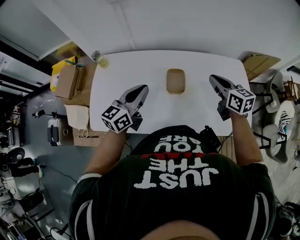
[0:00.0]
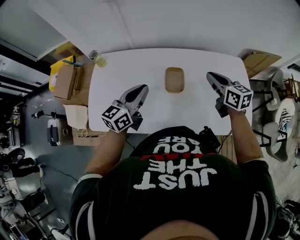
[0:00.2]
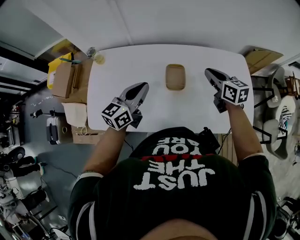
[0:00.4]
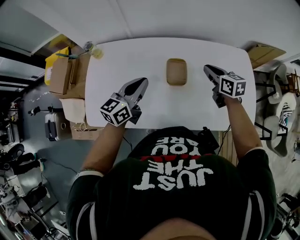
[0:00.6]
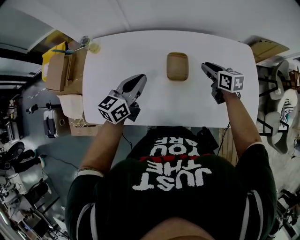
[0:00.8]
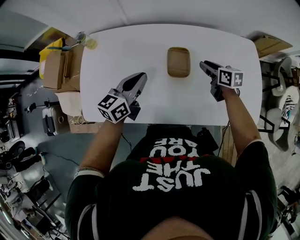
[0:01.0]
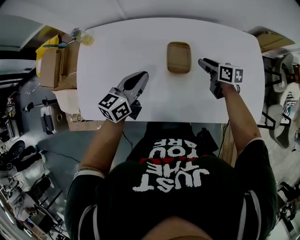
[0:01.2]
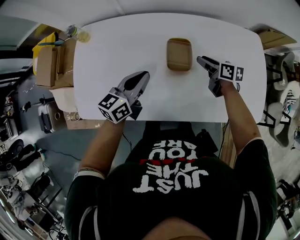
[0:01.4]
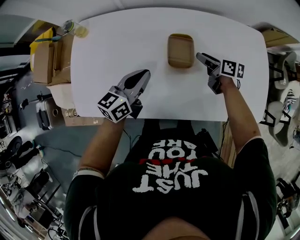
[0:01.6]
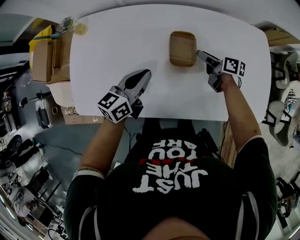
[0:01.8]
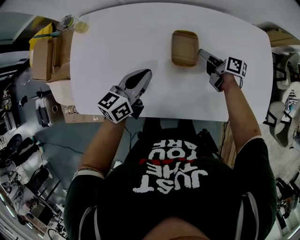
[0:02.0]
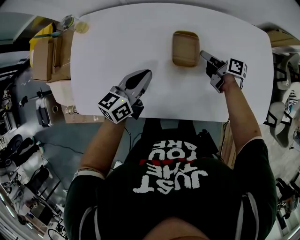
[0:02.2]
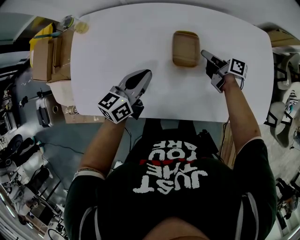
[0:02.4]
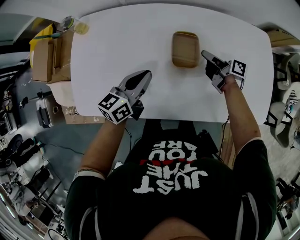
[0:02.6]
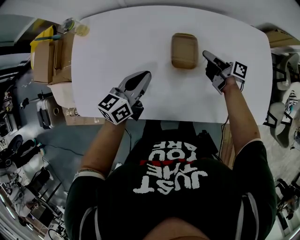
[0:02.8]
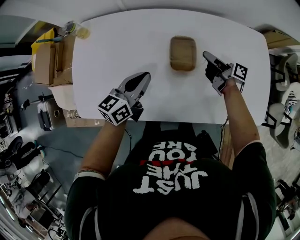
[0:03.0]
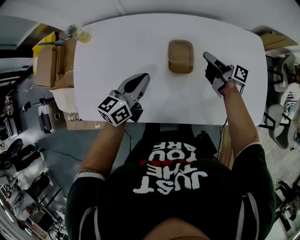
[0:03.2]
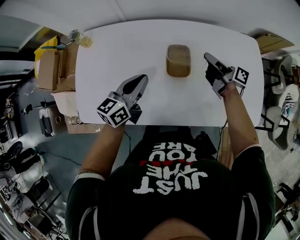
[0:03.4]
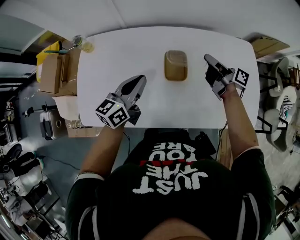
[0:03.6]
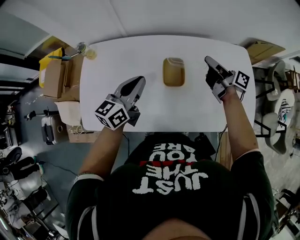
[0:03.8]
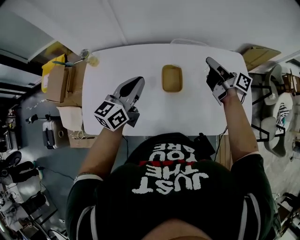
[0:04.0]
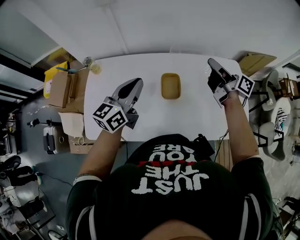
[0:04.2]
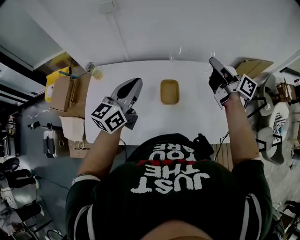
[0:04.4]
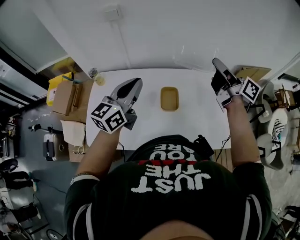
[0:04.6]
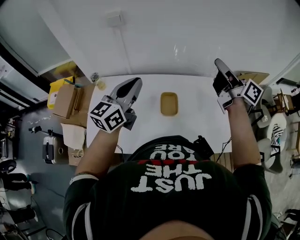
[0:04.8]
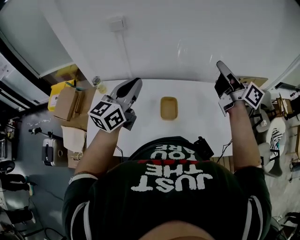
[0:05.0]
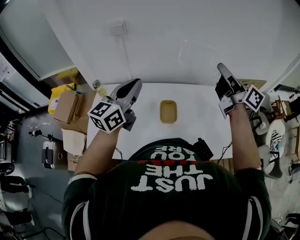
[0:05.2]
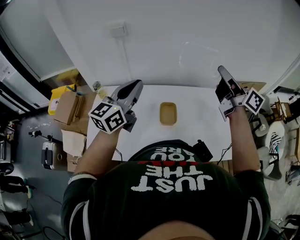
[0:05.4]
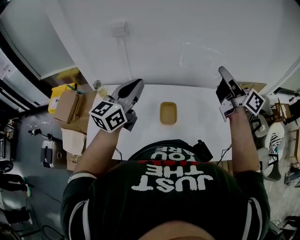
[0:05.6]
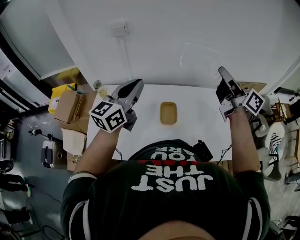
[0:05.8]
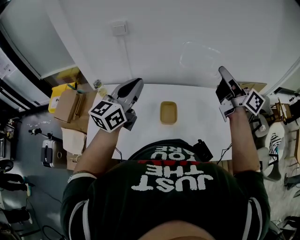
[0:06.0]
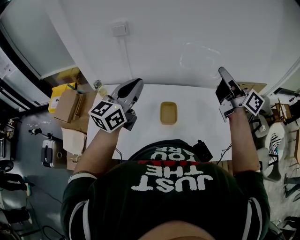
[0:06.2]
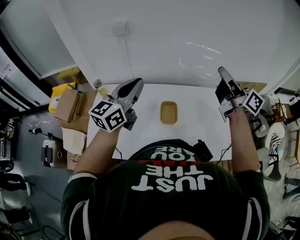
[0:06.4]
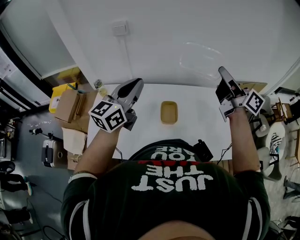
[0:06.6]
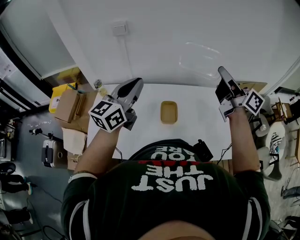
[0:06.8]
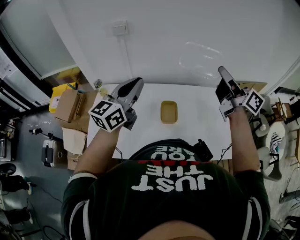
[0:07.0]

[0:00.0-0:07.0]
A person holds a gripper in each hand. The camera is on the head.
0.0 to 1.4 s: The right gripper heads downward, covering about 25 cm, swivels roughly 30 degrees, and opens, while the left gripper moves downward, roughly 15 cm.
1.4 to 2.8 s: The right gripper changes its angle by some 30 degrees, and closes its fingers.
2.8 to 4.2 s: Both grippers move upward, some 25 cm. The right gripper swivels approximately 30 degrees.
4.2 to 5.6 s: The left gripper travels upward by approximately 10 cm. Meanwhile the right gripper shifts roughly 20 cm upward, and changes its angle by some 20 degrees.
5.6 to 7.0 s: Both grippers stay put.

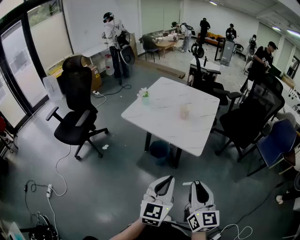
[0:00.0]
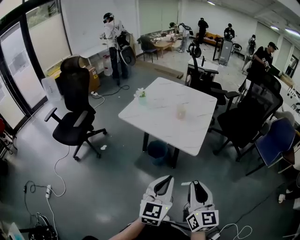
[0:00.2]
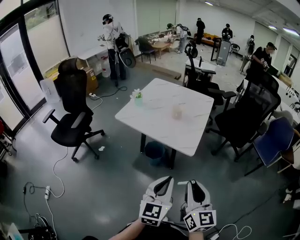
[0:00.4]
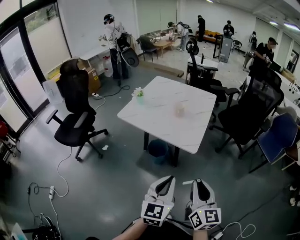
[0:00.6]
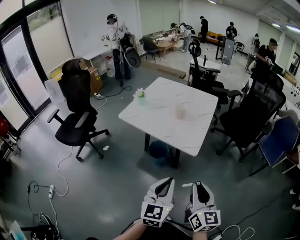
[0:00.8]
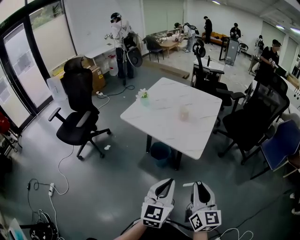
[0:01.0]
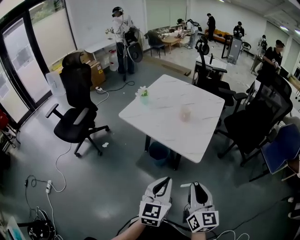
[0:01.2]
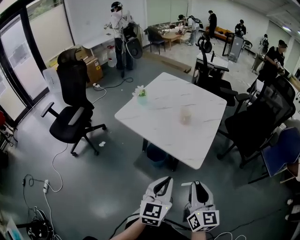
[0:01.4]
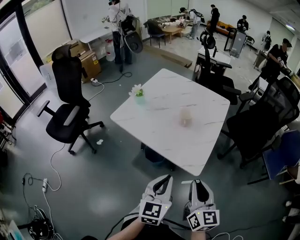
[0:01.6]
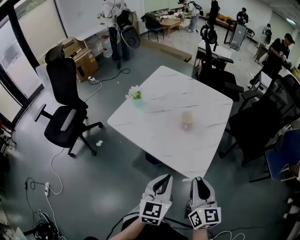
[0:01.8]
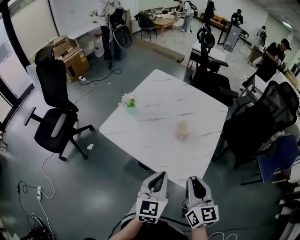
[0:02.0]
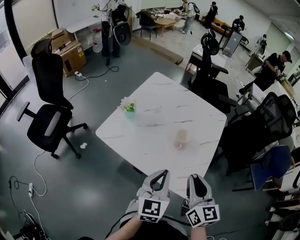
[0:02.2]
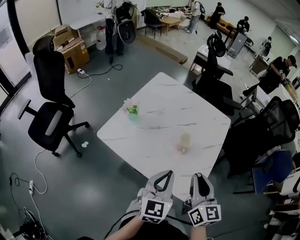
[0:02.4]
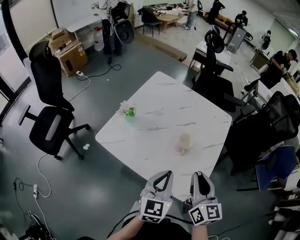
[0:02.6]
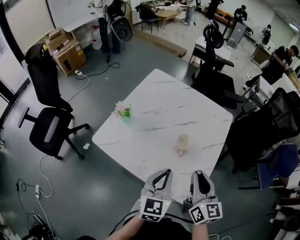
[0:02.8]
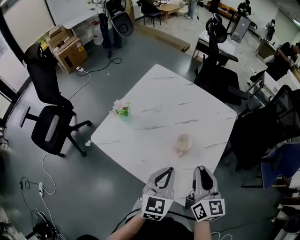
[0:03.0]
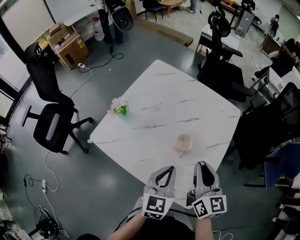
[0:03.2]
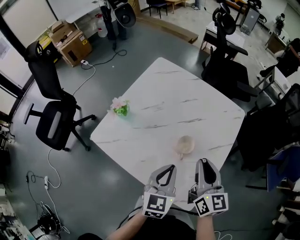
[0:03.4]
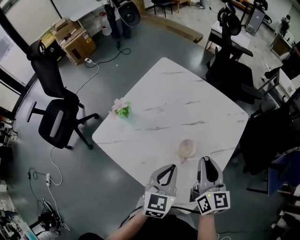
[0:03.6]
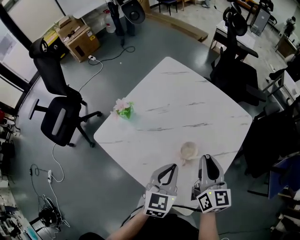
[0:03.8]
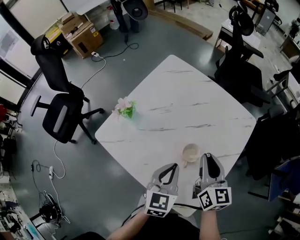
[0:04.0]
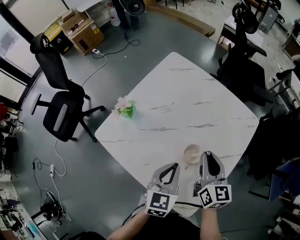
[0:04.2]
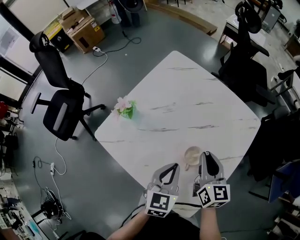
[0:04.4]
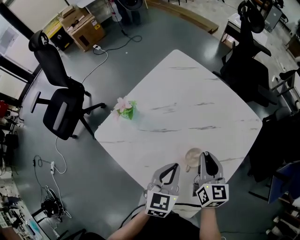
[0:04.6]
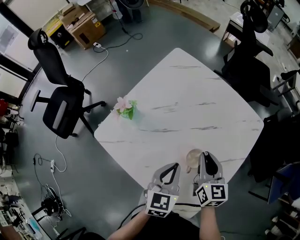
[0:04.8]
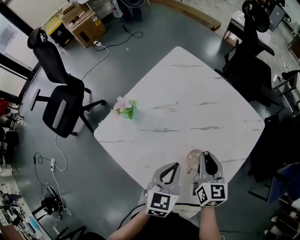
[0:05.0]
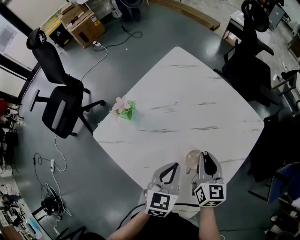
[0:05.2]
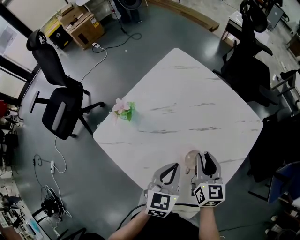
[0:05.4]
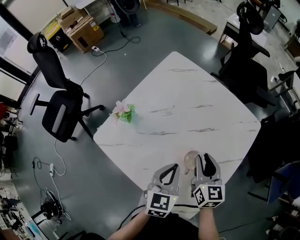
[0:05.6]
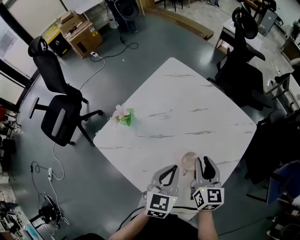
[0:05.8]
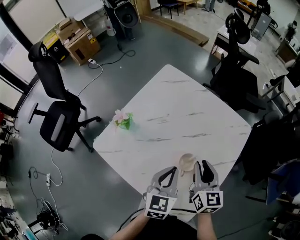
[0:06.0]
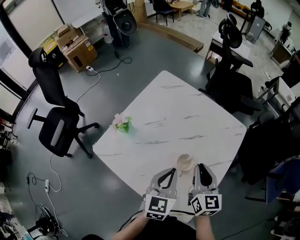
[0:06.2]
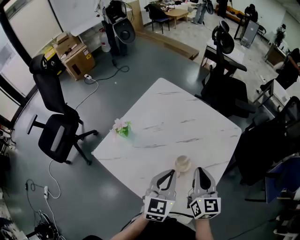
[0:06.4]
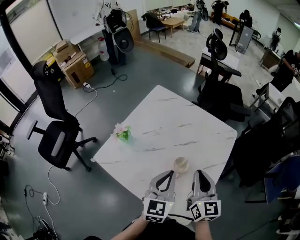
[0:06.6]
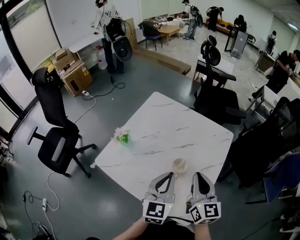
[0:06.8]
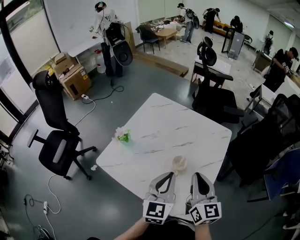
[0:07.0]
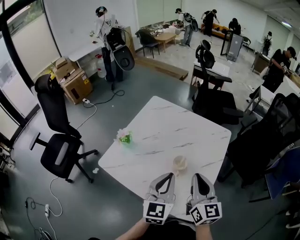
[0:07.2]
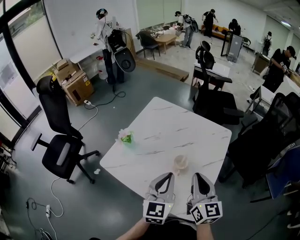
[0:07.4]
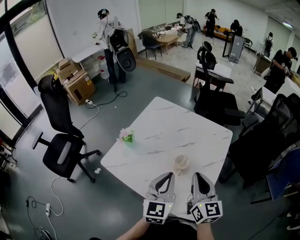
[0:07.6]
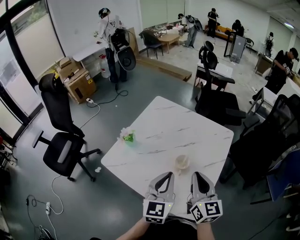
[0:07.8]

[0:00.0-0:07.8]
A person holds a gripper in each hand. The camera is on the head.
0.0 to 1.6 s: The right gripper is displaced forward by roughly 20 cm, while the left gripper moves forward and downward, approximately 20 cm.
1.6 to 3.2 s: Both grippers move forward, roughly 30 cm.
3.2 to 4.6 s: The right gripper shifts approximately 15 cm forward and downward. Meanwhile the left gripper moves forward and downward, some 10 cm.
4.6 to 6.2 s: The right gripper changes place by approximately 5 cm.
6.2 to 7.8 s: The two grippers go some 15 cm upward and backward.

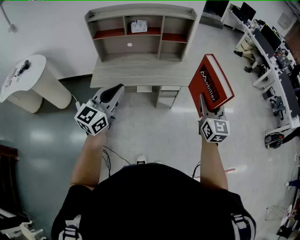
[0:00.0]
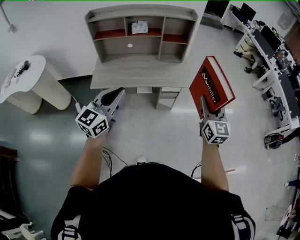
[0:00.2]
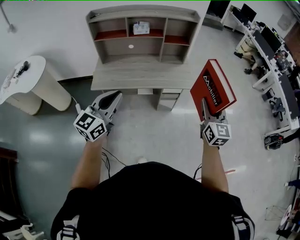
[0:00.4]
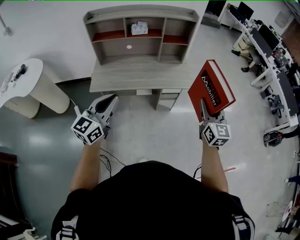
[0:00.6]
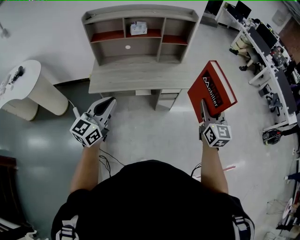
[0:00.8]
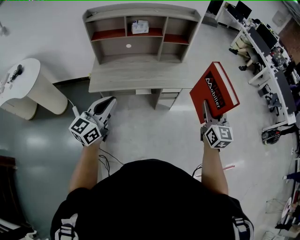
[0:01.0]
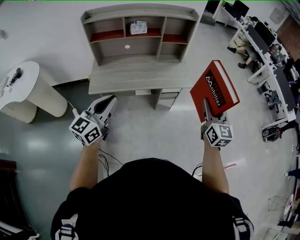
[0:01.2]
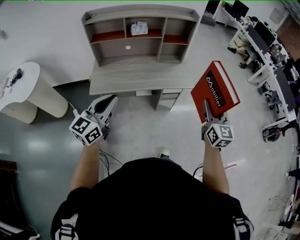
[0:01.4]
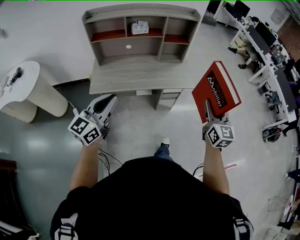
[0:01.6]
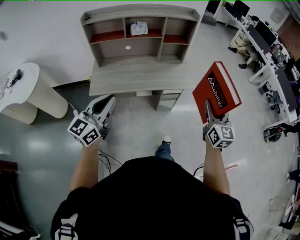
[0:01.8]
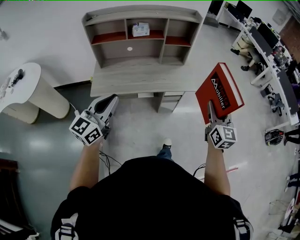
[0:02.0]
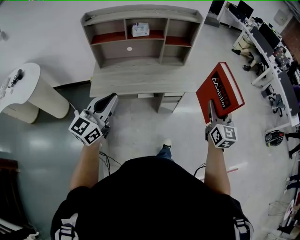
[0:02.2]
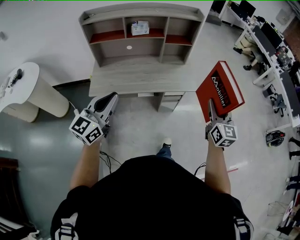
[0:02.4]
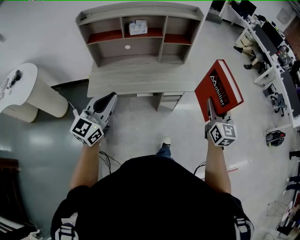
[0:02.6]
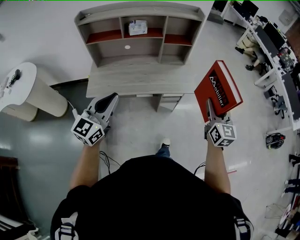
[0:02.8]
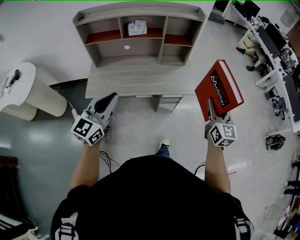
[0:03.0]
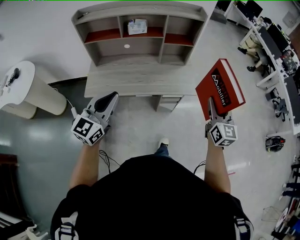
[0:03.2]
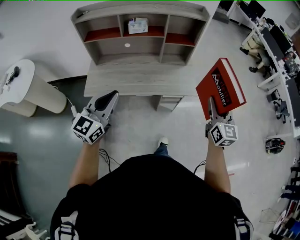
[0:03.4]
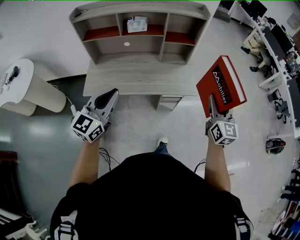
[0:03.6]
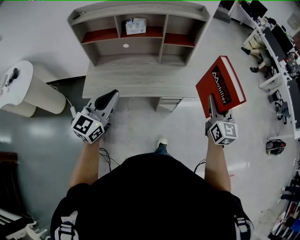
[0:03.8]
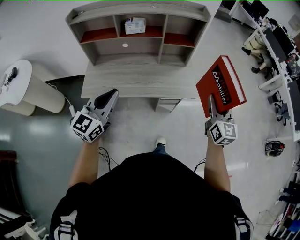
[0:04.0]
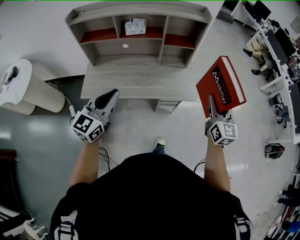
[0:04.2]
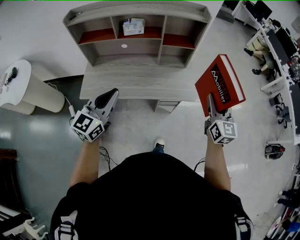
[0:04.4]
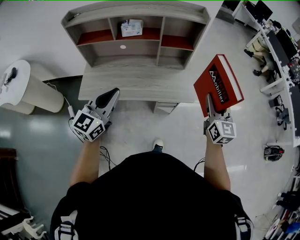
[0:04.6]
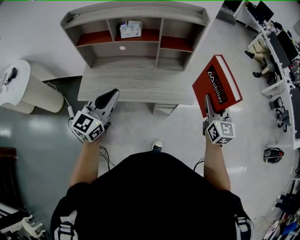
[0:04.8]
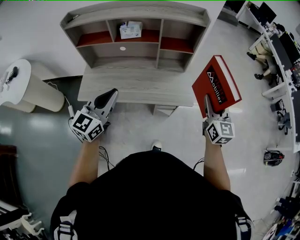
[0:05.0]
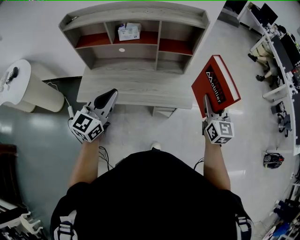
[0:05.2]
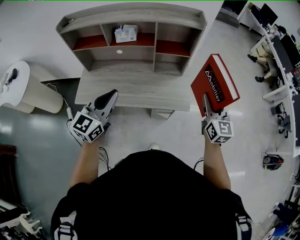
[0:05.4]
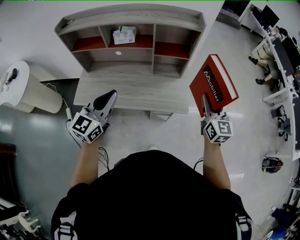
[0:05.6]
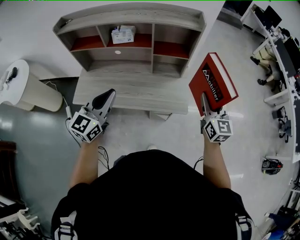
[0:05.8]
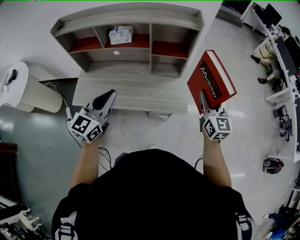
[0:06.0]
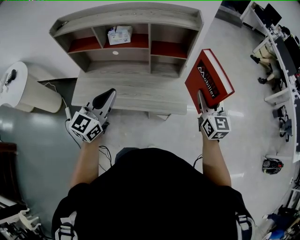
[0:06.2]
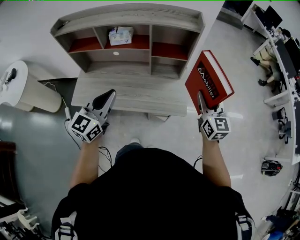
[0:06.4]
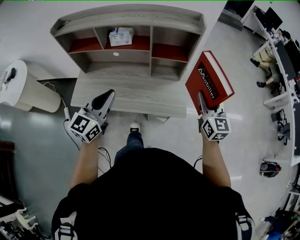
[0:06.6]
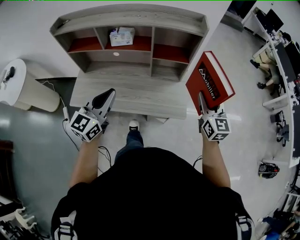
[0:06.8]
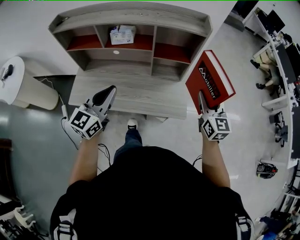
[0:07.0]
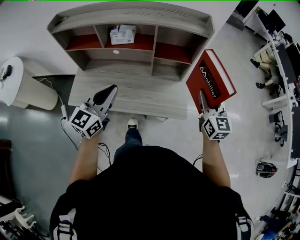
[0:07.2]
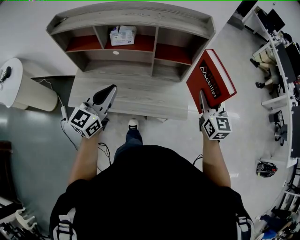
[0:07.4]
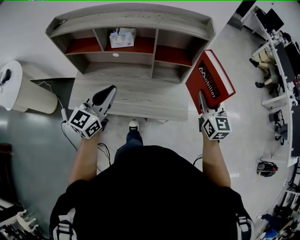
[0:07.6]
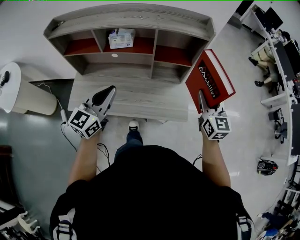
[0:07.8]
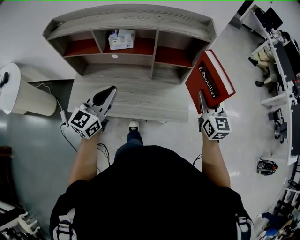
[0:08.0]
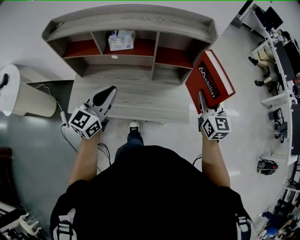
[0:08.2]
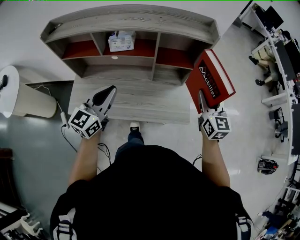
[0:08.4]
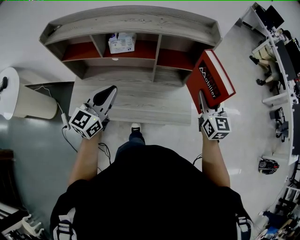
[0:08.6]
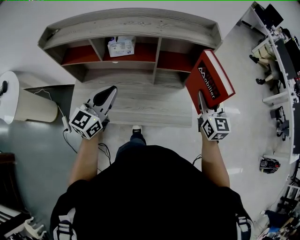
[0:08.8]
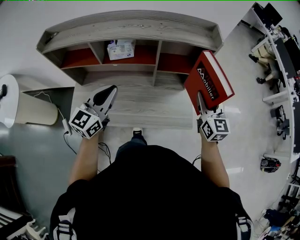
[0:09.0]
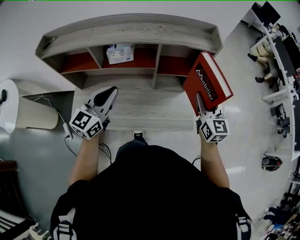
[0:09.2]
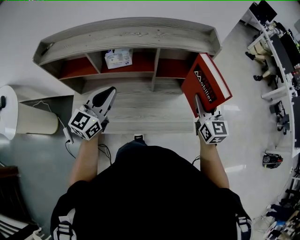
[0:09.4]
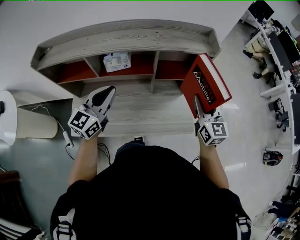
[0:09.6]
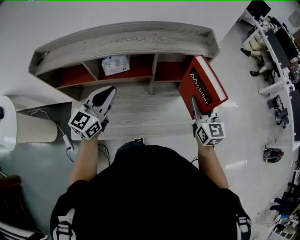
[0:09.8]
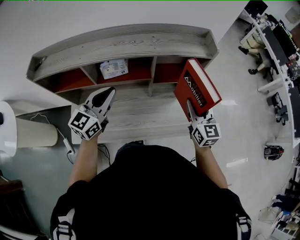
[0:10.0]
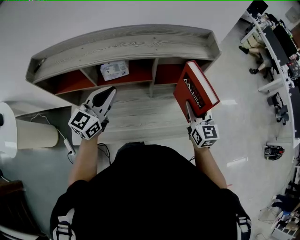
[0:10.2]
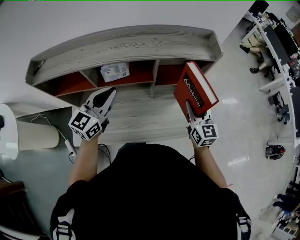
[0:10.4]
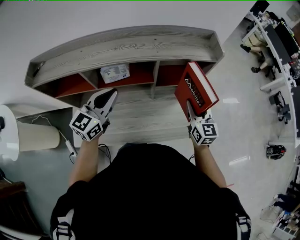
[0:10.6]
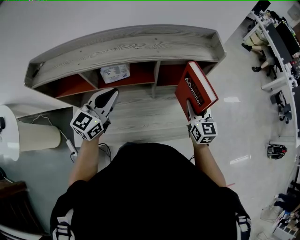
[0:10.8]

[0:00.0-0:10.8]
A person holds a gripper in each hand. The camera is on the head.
0.0 to 1.6 s: The left gripper travels to the left by about 10 cm. Meanwhile the right gripper goes roughly 5 cm to the left.
1.6 to 3.0 s: The two grippers go roughly 10 cm forward.
3.0 to 4.6 s: Both grippers travel together forward, approximately 15 cm.
4.6 to 6.2 s: The right gripper travels forward by about 15 cm. The left gripper shifts about 15 cm forward and to the right.
6.2 to 7.8 s: The right gripper shifts approximately 5 cm forward. Meanwhile the left gripper travels forward and to the left by approximately 10 cm.
7.8 to 9.2 s: The left gripper moves forward, approximately 10 cm. Meanwhile the right gripper goes approximately 5 cm forward.
9.2 to 10.8 s: The left gripper heads forward, covering approximately 10 cm. Meanwhile the right gripper heads downward, covering approximately 5 cm.
